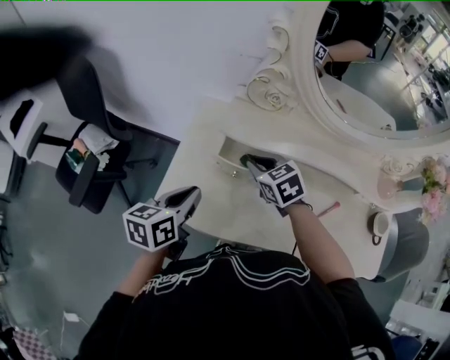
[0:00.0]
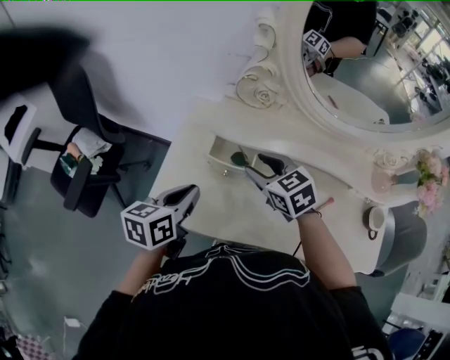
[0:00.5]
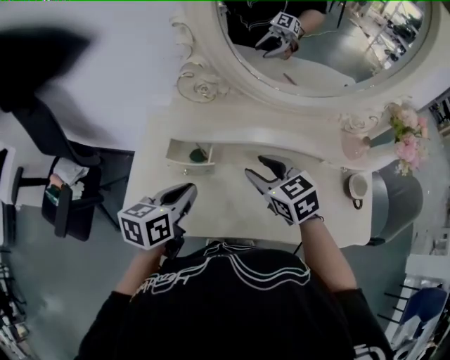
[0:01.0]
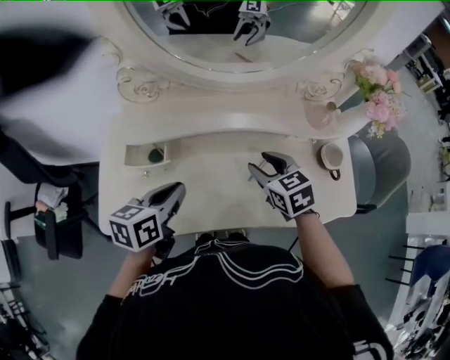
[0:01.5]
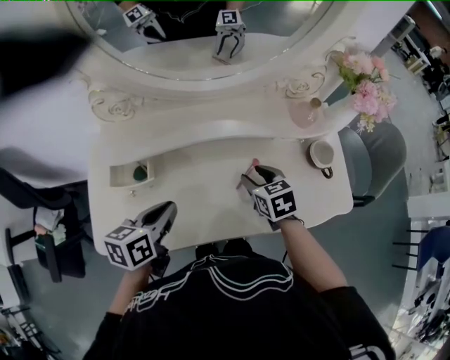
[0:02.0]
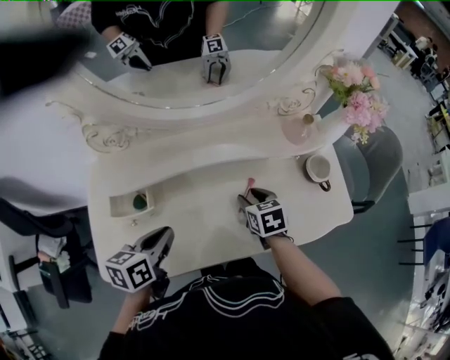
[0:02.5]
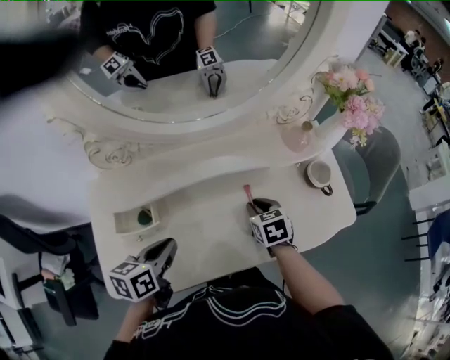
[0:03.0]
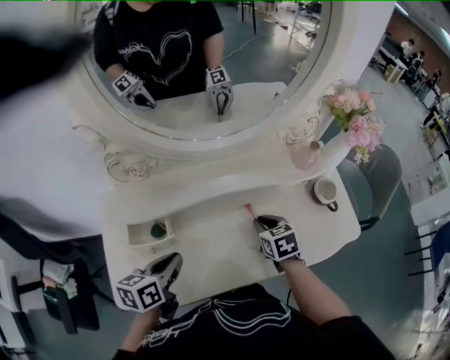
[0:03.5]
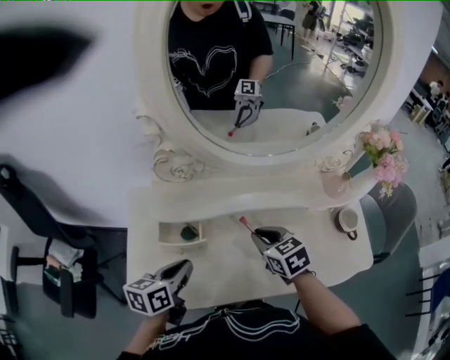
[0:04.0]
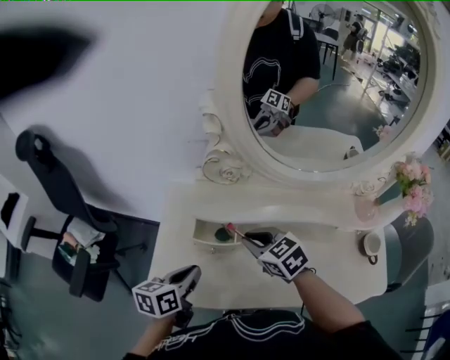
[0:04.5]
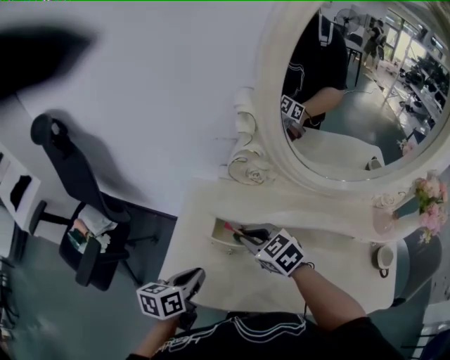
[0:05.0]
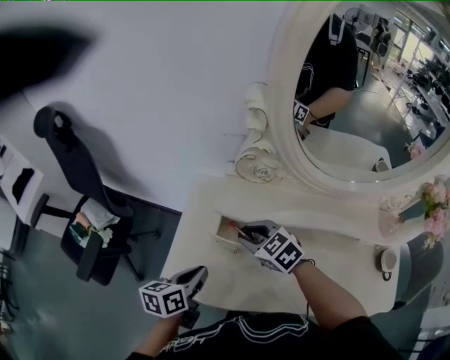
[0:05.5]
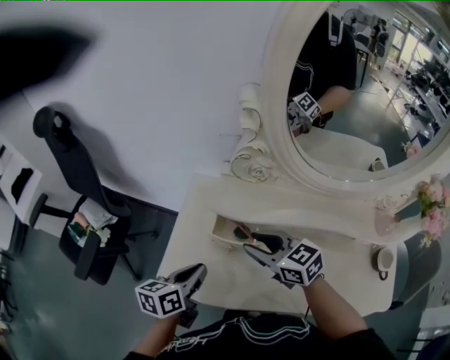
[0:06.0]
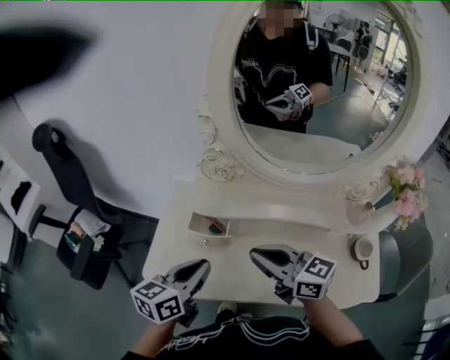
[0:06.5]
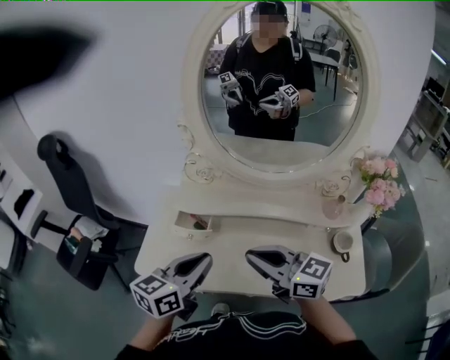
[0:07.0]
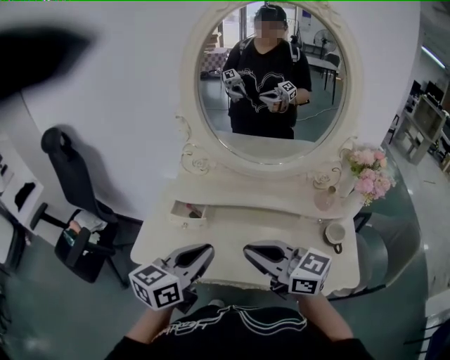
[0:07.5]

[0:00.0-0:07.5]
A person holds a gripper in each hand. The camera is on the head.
0:00.0 to 0:02.0: The right gripper shifts by approximately 35 cm, turns by about 40 degrees, and opens up. The left gripper shifts by some 25 cm, and changes its angle by about 20 degrees.
0:02.0 to 0:04.0: The left gripper is displaced to the left by roughly 10 cm; the right gripper heads to the left and upward, covering roughly 15 cm, and closes up.
0:04.0 to 0:05.5: The right gripper travels to the left by some 20 cm, and turns by roughly 40 degrees. The left gripper goes about 10 cm to the left.
0:05.5 to 0:07.5: The right gripper goes approximately 40 cm backward, upward and to the right, angles its fingers upward, by roughly 40 degrees, and closes its fingers. The left gripper shifts roughly 35 cm upward, to the right and backward, and turns by about 30 degrees.

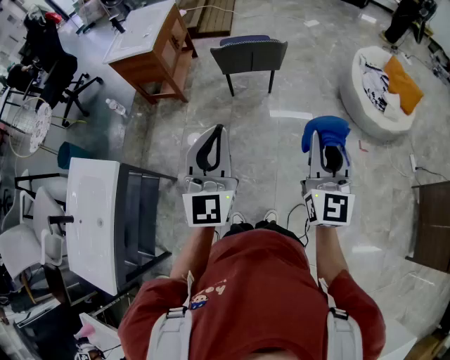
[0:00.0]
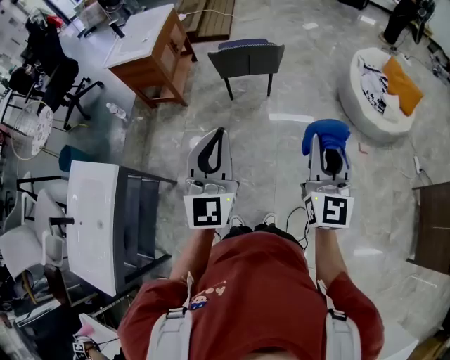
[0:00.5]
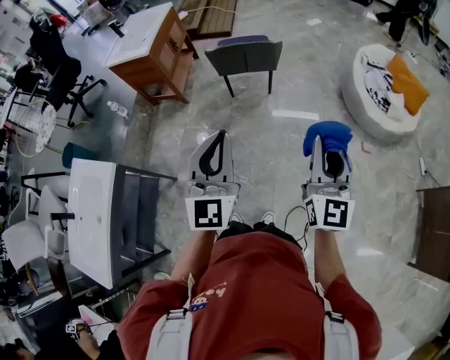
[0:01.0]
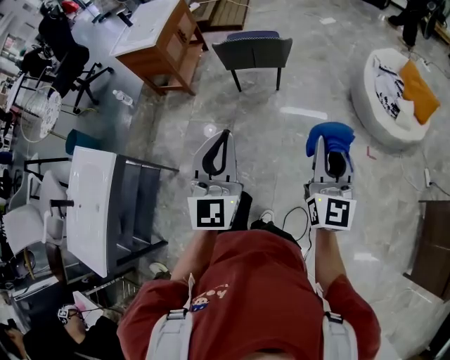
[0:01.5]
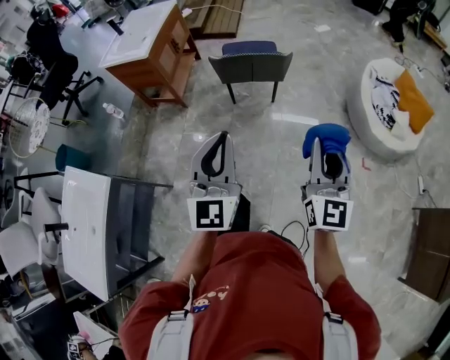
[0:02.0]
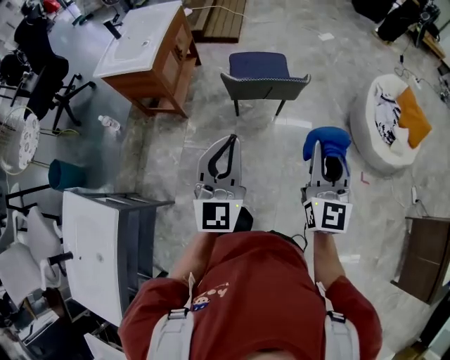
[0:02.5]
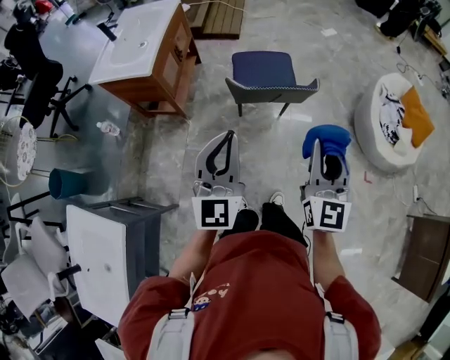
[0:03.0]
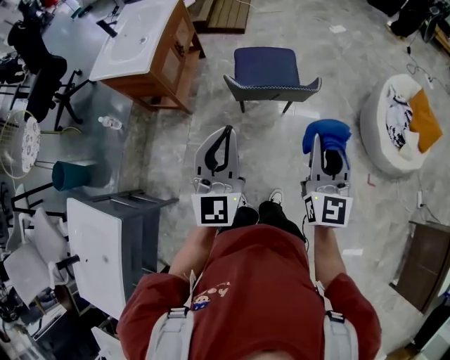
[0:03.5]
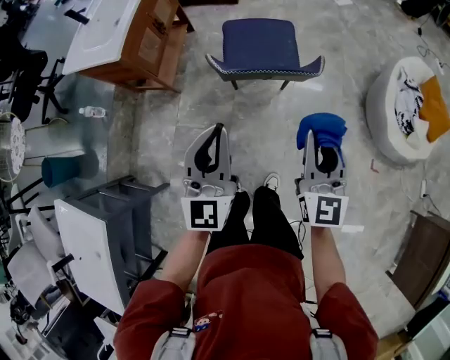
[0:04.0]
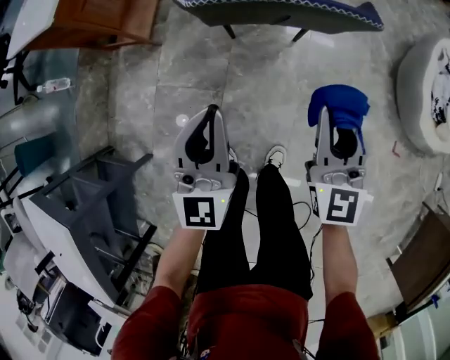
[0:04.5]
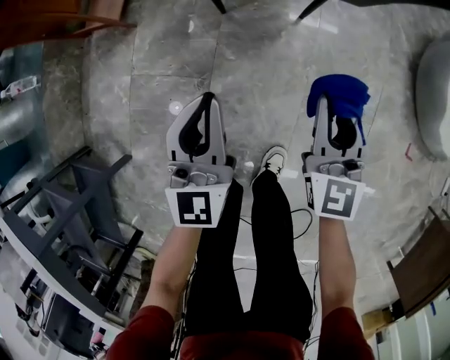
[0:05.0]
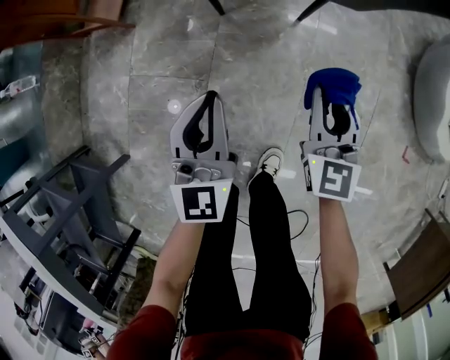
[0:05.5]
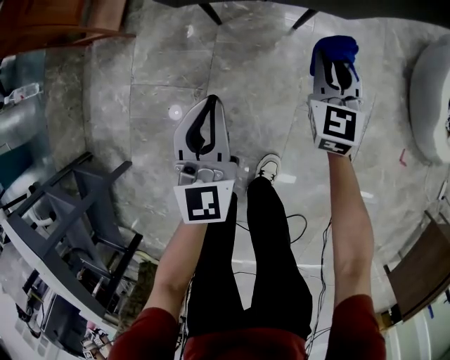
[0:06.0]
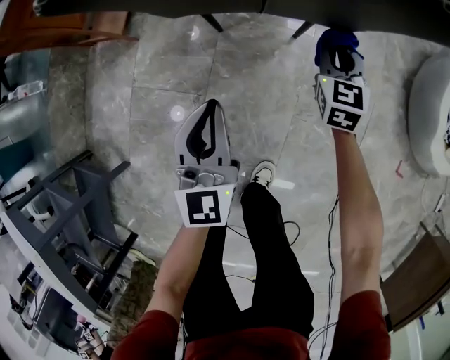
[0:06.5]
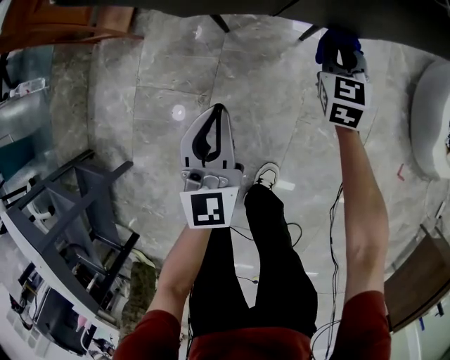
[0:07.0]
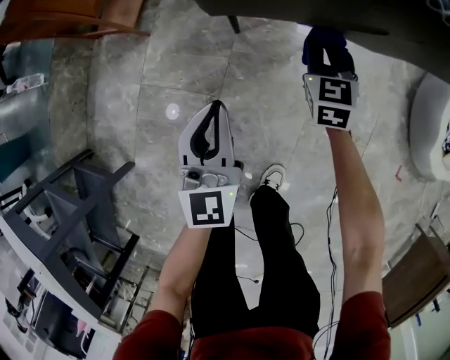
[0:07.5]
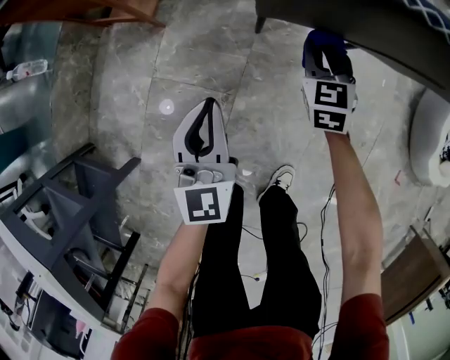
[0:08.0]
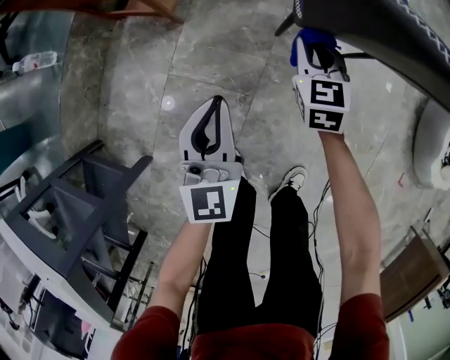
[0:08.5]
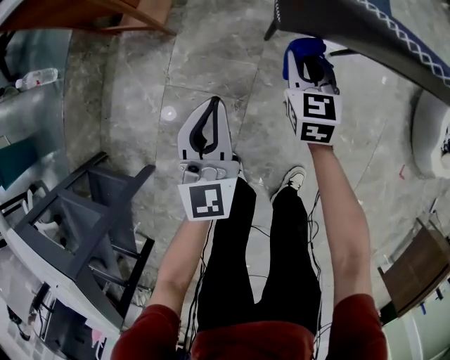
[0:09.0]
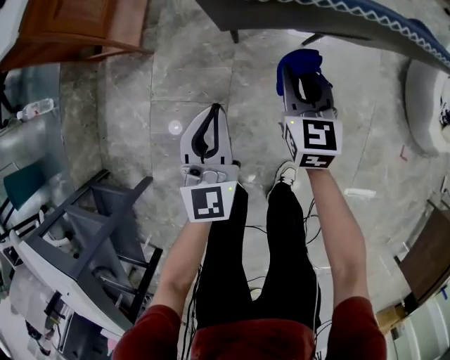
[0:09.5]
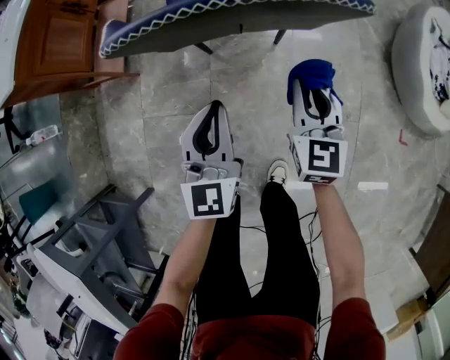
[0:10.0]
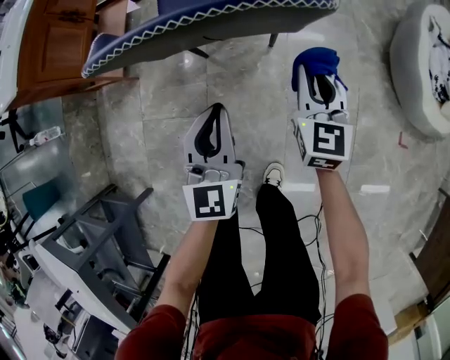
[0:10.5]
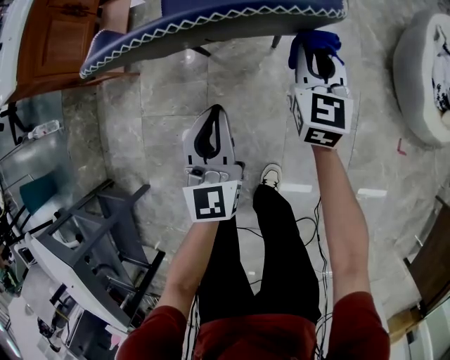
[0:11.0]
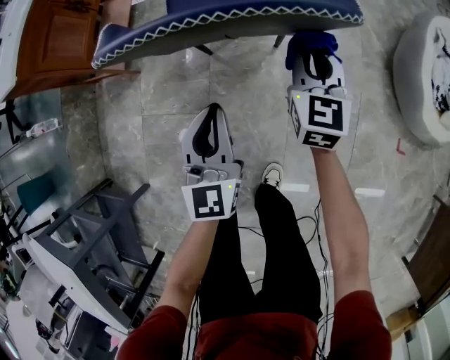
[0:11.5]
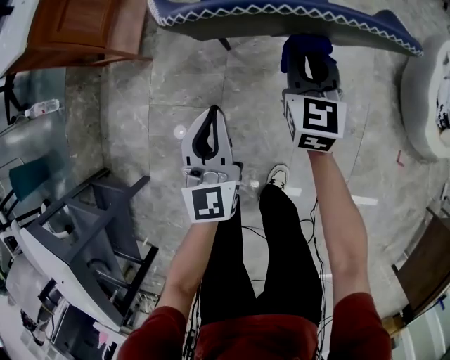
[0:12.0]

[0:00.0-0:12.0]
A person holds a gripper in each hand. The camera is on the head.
0:00.0 to 0:02.0: The two grippers go roughly 10 cm forward and to the right.
0:02.0 to 0:04.0: The left gripper travels forward by roughly 30 cm. Meanwhile the right gripper travels forward and downward by approximately 30 cm.
0:04.0 to 0:06.0: Both grippers move downward, some 50 cm.
0:06.0 to 0:08.0: The left gripper goes approximately 15 cm to the left; the right gripper travels to the left and forward by about 20 cm.
0:08.0 to 0:10.0: The right gripper is displaced to the right, upward and backward by roughly 25 cm, and swivels about 20 degrees. The left gripper moves to the right, roughly 20 cm.
0:10.0 to 0:12.0: The left gripper goes approximately 5 cm to the left. Meanwhile the right gripper shifts roughly 10 cm to the left and forward.

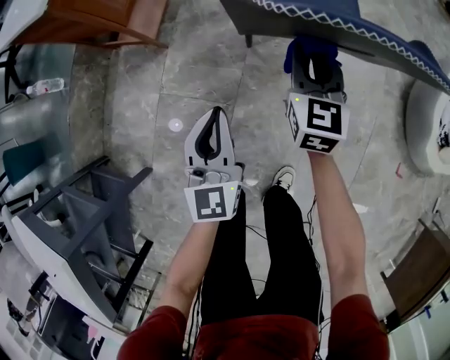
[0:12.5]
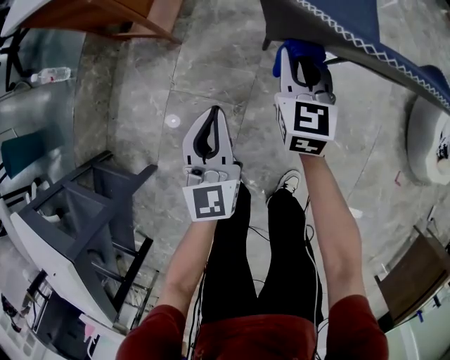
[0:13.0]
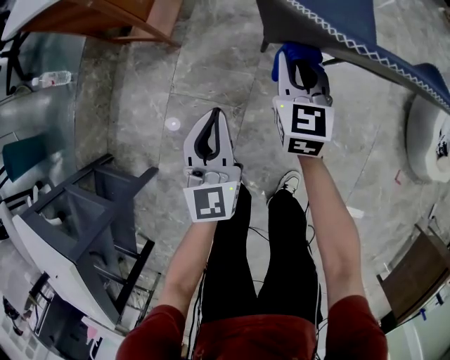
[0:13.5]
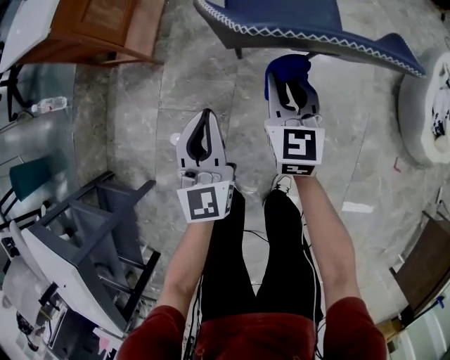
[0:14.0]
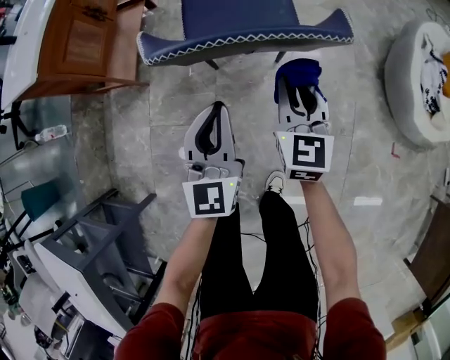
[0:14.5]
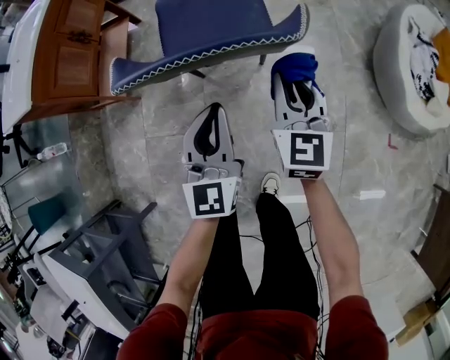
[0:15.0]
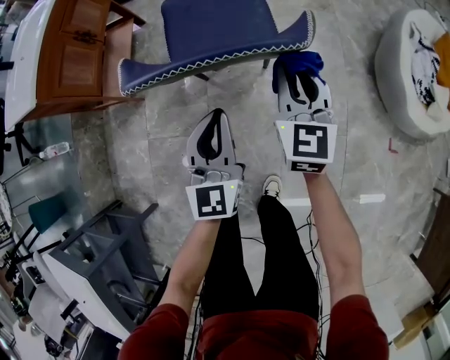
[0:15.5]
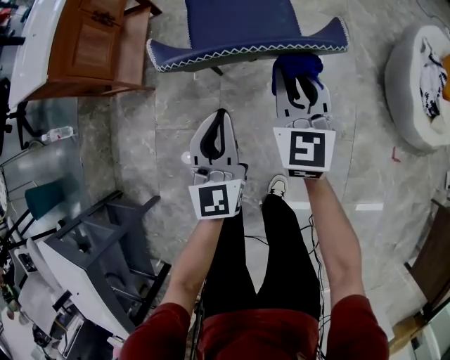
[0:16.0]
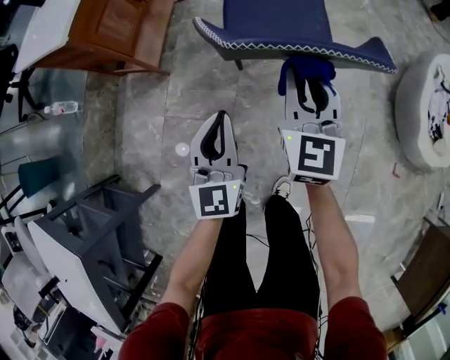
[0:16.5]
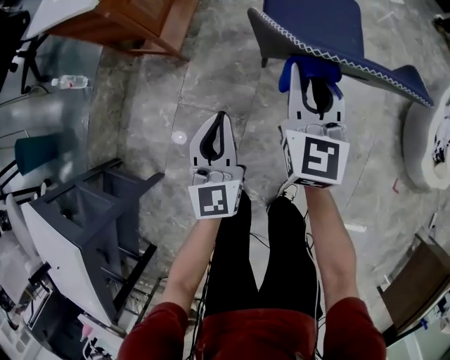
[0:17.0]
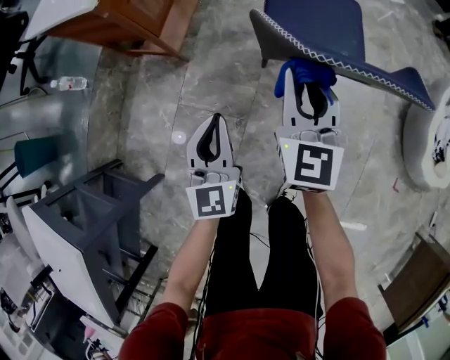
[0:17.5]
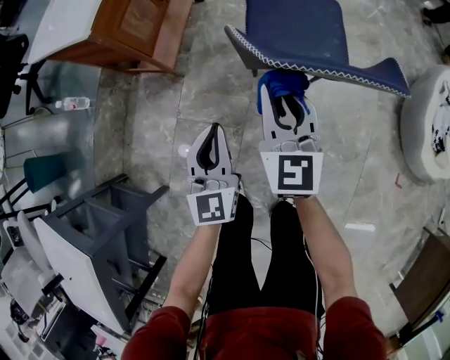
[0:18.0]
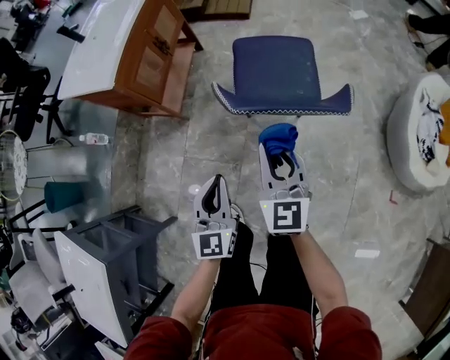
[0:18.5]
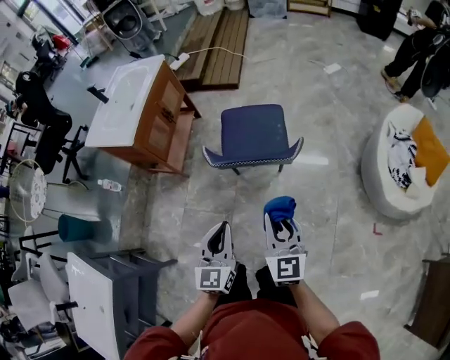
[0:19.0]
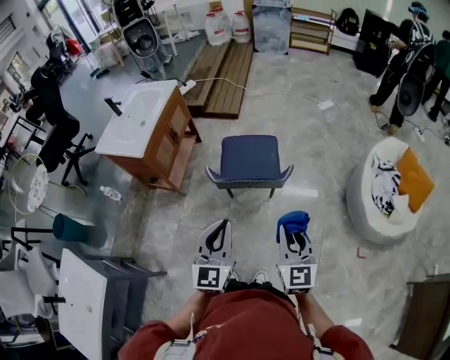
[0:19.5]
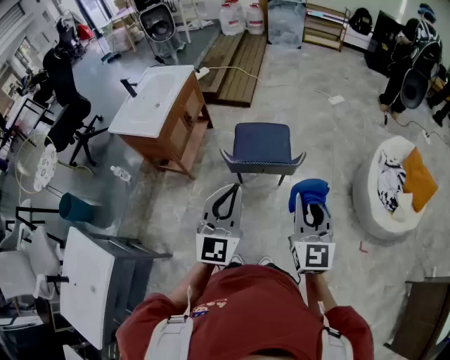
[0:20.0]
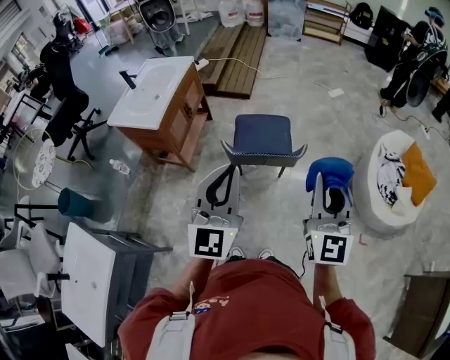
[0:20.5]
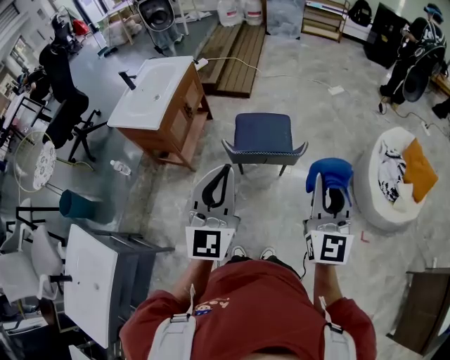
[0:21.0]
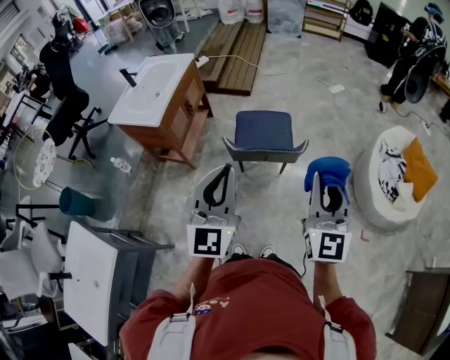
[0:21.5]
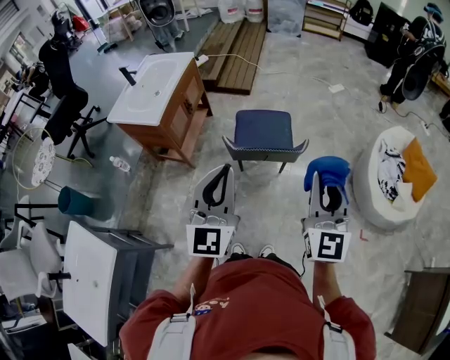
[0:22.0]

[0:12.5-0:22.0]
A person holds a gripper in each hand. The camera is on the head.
0:12.5 to 0:14.5: The left gripper shifts approximately 15 cm to the right and upward, while the right gripper goes approximately 15 cm to the right, backward and upward.
0:14.5 to 0:16.5: The right gripper is displaced to the left and upward by some 10 cm, while the left gripper heads to the left, covering roughly 10 cm.
0:16.5 to 0:18.0: Both grippers move to the left, approximately 10 cm.
0:18.0 to 0:20.0: The left gripper shifts approximately 40 cm upward and to the right. Meanwhile the right gripper travels upward, to the right and backward by approximately 50 cm.
0:20.0 to 0:22.0: The left gripper ends up approximately 5 cm from where it was. Meanwhile the right gripper goes some 5 cm upward.
